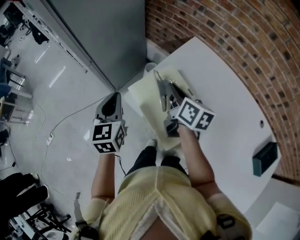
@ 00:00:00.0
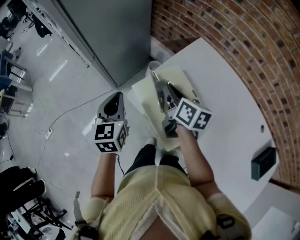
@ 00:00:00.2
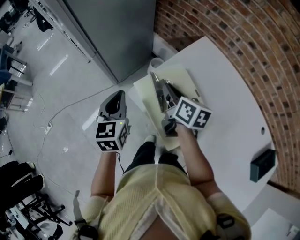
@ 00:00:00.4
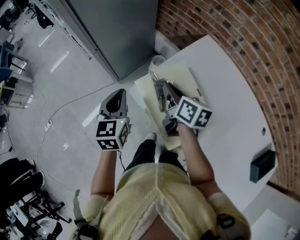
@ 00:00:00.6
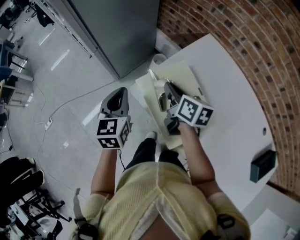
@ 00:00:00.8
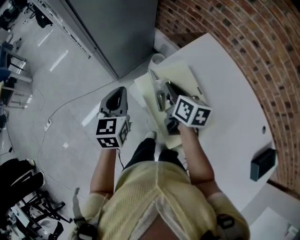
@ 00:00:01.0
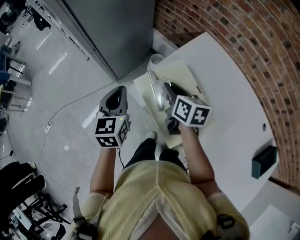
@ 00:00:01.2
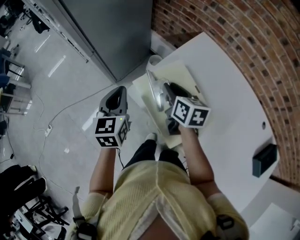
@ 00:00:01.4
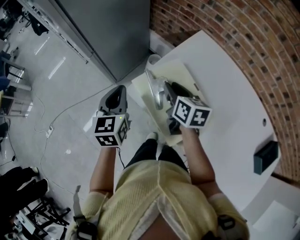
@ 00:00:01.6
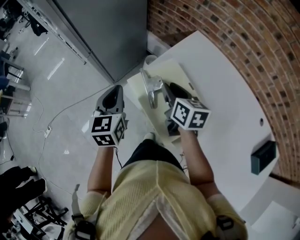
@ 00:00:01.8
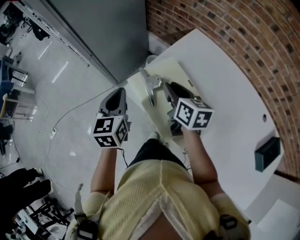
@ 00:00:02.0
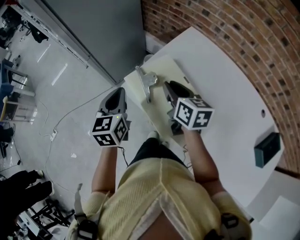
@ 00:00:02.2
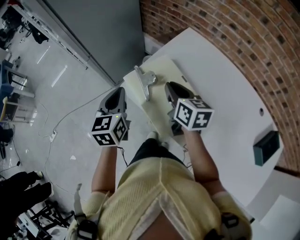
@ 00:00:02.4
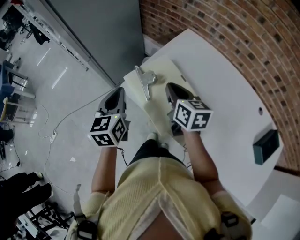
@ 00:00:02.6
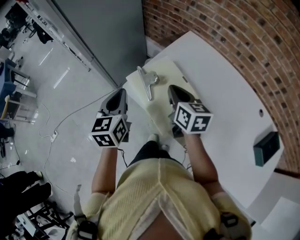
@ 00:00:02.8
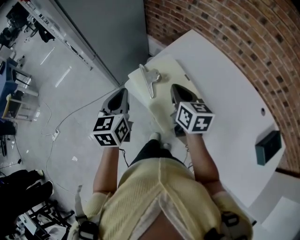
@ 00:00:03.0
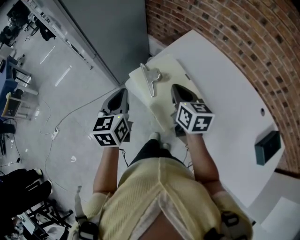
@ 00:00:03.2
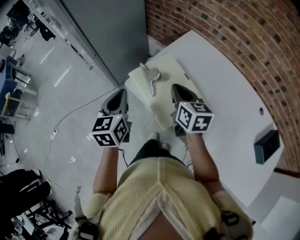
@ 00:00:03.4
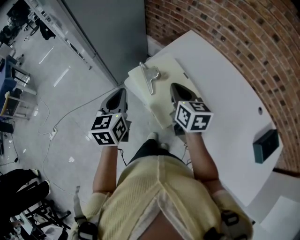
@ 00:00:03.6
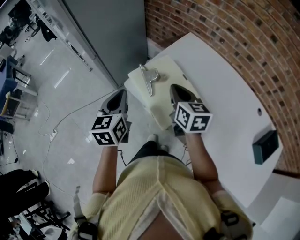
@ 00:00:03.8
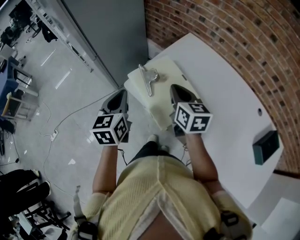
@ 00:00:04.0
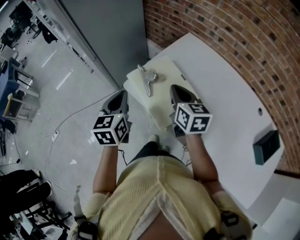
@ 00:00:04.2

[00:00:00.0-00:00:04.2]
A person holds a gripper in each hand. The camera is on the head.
00:00:00.0 to 00:00:01.4: The right gripper moves roughly 5 cm.
00:00:01.4 to 00:00:02.8: The right gripper shifts about 10 cm backward and upward, and closes up, while the left gripper shifts roughly 5 cm backward.
00:00:02.8 to 00:00:04.2: There are only small adjustments of the grippers.

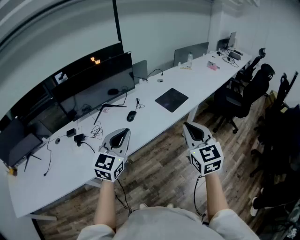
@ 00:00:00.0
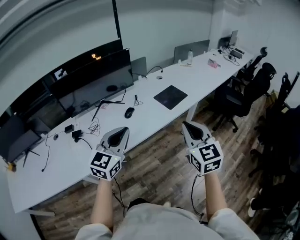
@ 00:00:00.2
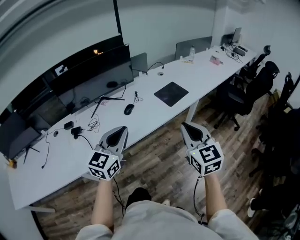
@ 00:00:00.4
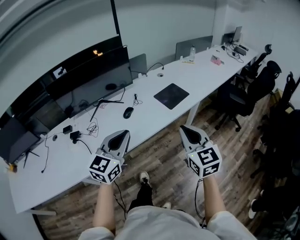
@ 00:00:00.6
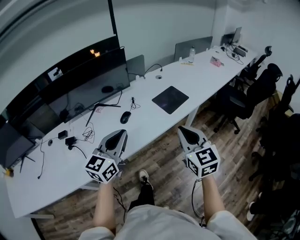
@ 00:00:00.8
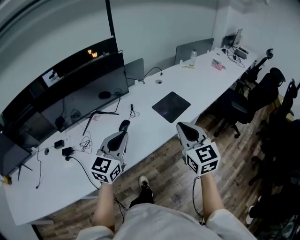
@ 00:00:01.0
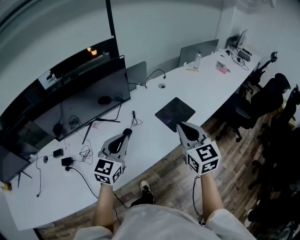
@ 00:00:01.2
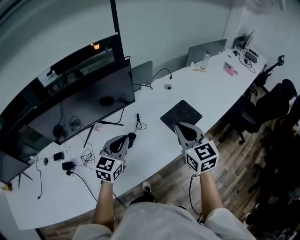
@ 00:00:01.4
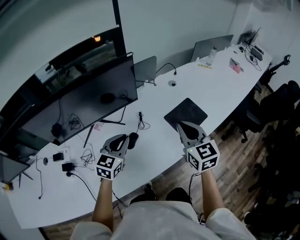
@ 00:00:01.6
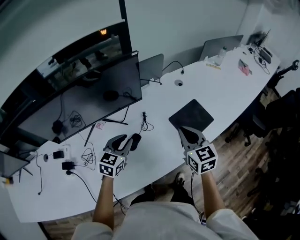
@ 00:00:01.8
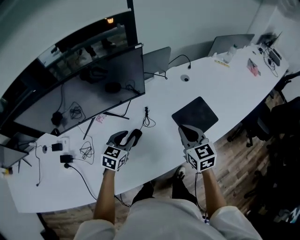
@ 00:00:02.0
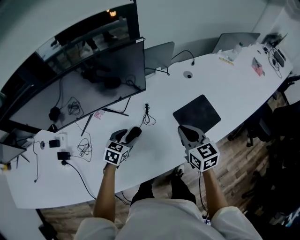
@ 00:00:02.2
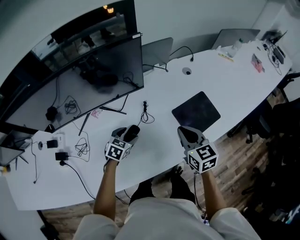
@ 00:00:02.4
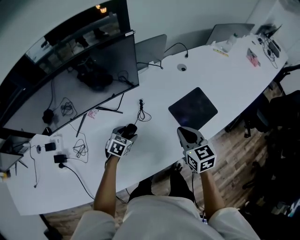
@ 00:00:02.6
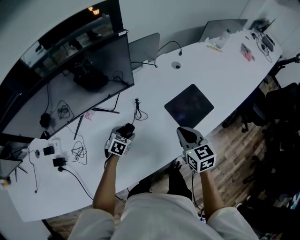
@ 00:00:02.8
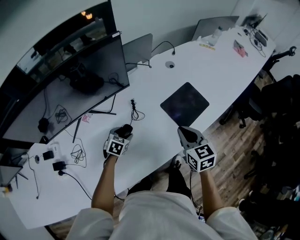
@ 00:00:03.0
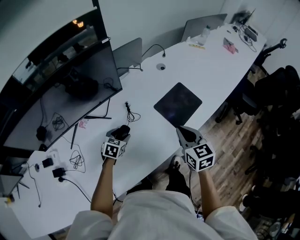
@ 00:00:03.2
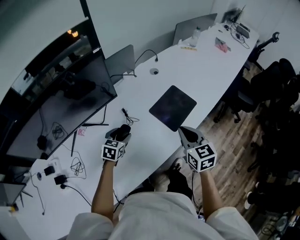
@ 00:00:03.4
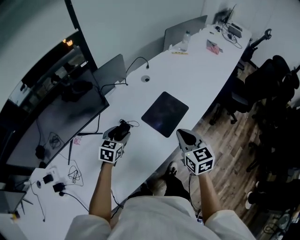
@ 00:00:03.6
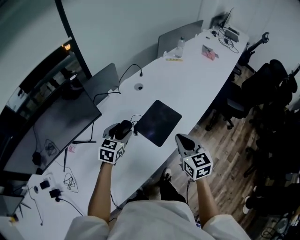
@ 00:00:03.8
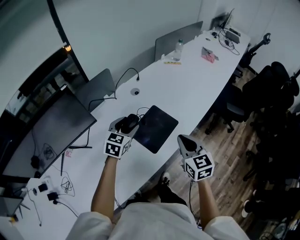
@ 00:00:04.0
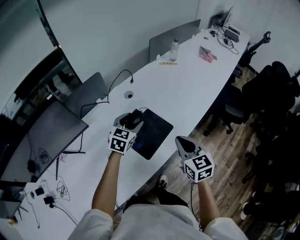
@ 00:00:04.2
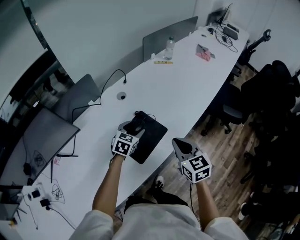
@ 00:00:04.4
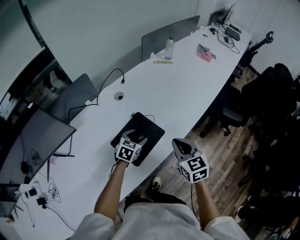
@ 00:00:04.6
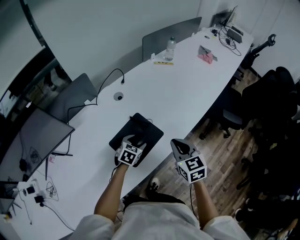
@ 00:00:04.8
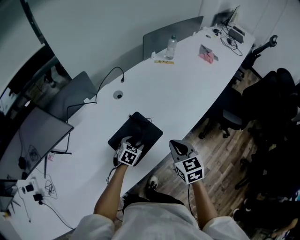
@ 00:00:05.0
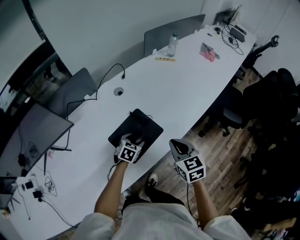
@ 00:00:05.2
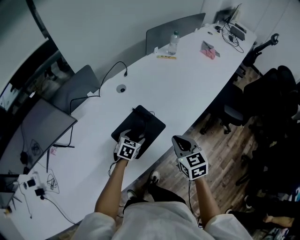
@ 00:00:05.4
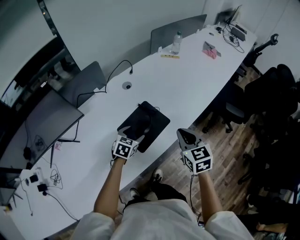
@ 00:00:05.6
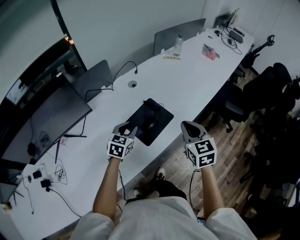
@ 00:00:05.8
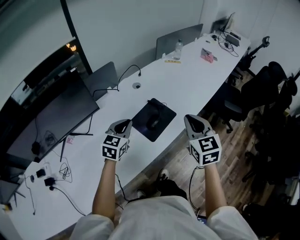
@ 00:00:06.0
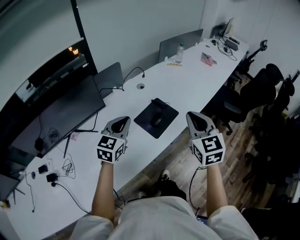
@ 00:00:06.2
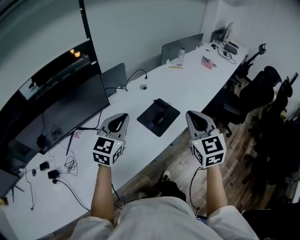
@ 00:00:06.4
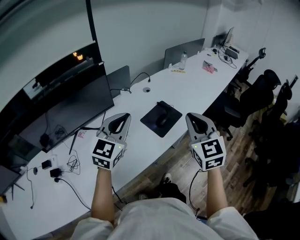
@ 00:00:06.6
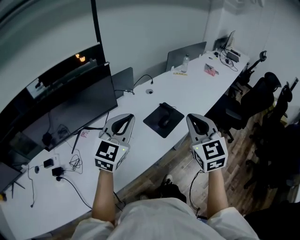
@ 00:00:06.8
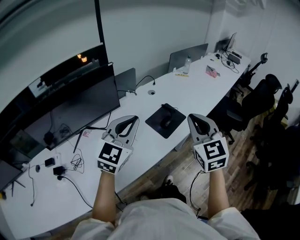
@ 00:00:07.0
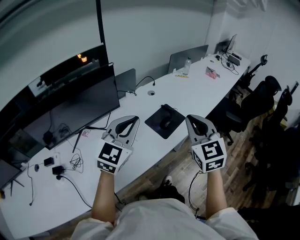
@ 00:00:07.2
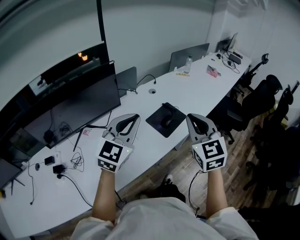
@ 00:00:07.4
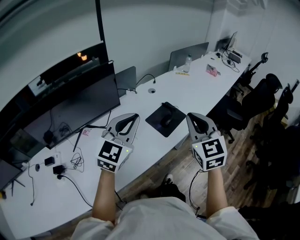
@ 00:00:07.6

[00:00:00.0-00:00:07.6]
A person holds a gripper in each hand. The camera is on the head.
00:00:00.0 to 00:00:01.6: The right gripper moves forward, roughly 40 cm. Meanwhile the left gripper shifts some 40 cm forward and downward.
00:00:01.6 to 00:00:03.0: The right gripper travels downward by about 15 cm. The left gripper travels downward by roughly 25 cm, tips its fingers downward by approximately 30 degrees, and opens up.
00:00:03.0 to 00:00:04.6: The two grippers go approximately 35 cm to the right and forward.
00:00:04.6 to 00:00:06.0: The left gripper heads upward, backward and to the left, covering roughly 25 cm, rotates approximately 20 degrees, and closes; the right gripper goes about 15 cm upward and backward.
00:00:06.0 to 00:00:07.6: The right gripper shifts roughly 20 cm backward, to the left and upward. Meanwhile the left gripper moves upward and backward, about 25 cm, and changes its angle by some 20 degrees.

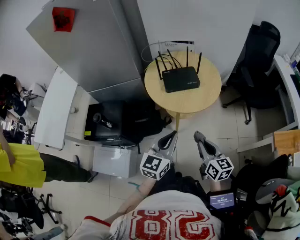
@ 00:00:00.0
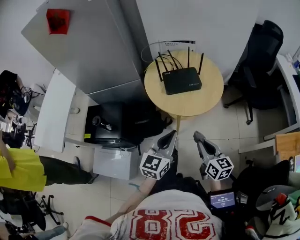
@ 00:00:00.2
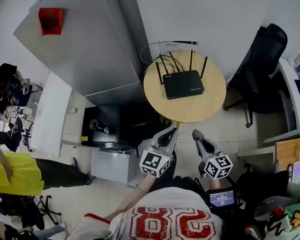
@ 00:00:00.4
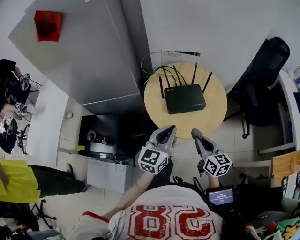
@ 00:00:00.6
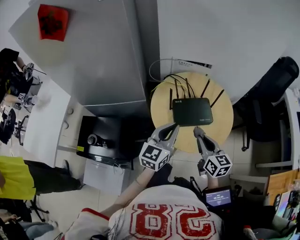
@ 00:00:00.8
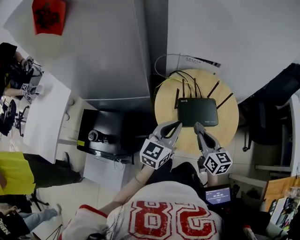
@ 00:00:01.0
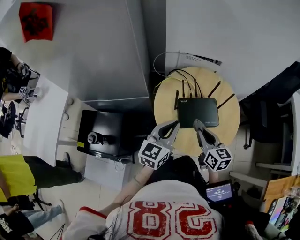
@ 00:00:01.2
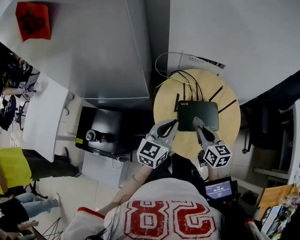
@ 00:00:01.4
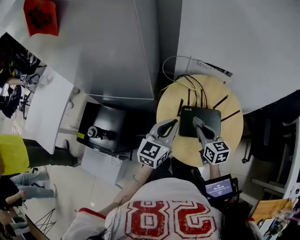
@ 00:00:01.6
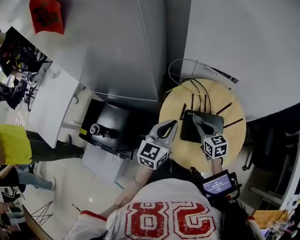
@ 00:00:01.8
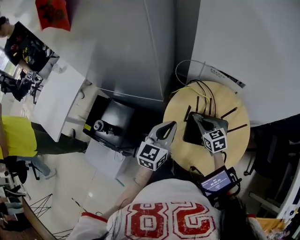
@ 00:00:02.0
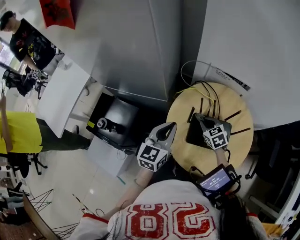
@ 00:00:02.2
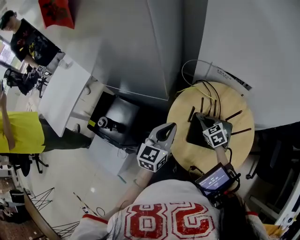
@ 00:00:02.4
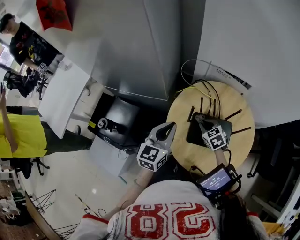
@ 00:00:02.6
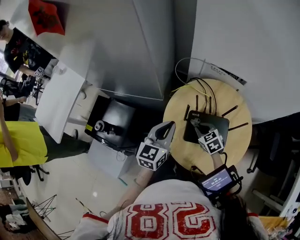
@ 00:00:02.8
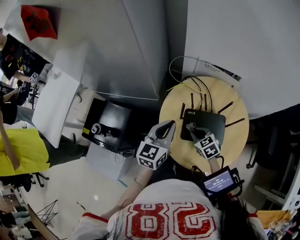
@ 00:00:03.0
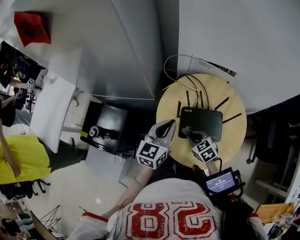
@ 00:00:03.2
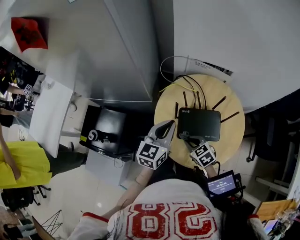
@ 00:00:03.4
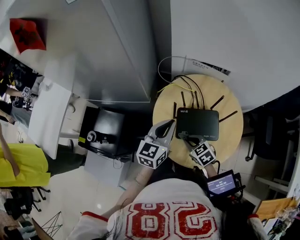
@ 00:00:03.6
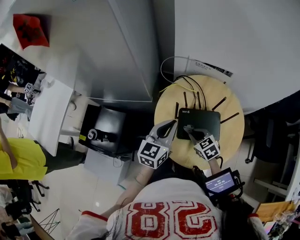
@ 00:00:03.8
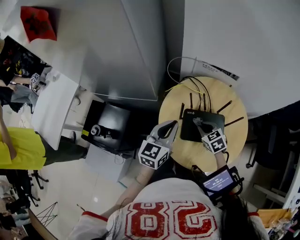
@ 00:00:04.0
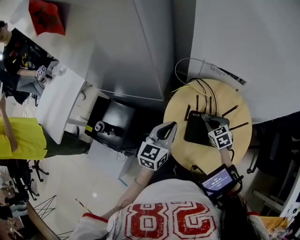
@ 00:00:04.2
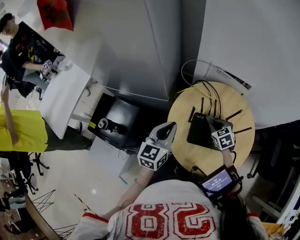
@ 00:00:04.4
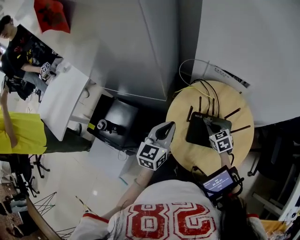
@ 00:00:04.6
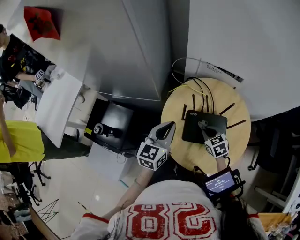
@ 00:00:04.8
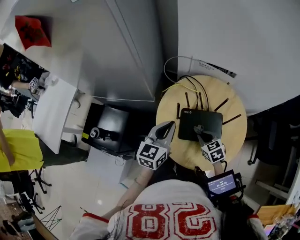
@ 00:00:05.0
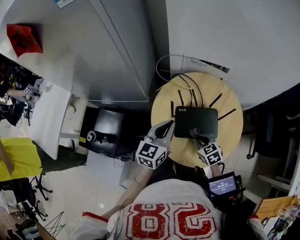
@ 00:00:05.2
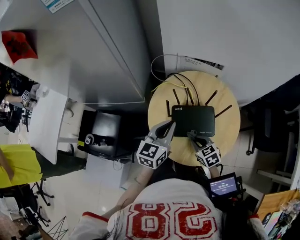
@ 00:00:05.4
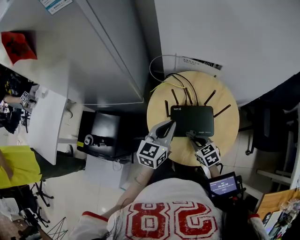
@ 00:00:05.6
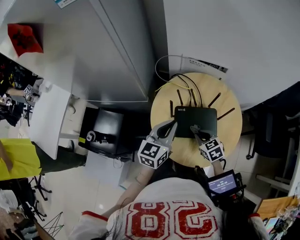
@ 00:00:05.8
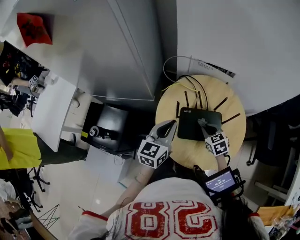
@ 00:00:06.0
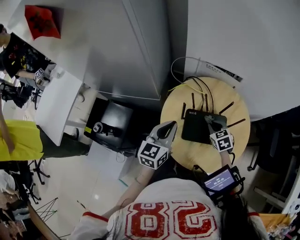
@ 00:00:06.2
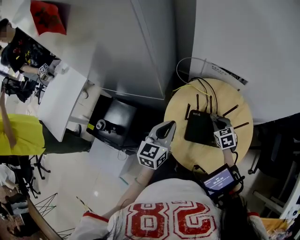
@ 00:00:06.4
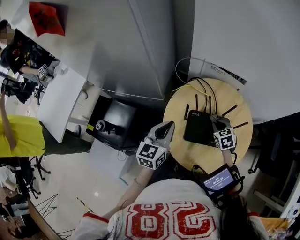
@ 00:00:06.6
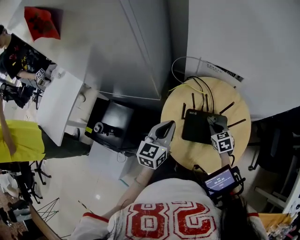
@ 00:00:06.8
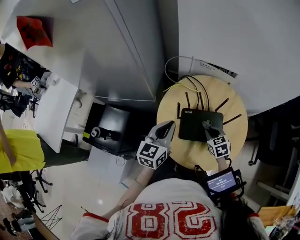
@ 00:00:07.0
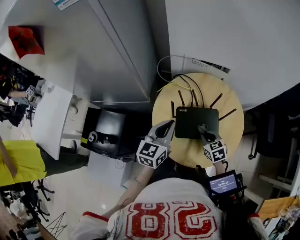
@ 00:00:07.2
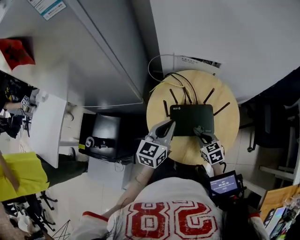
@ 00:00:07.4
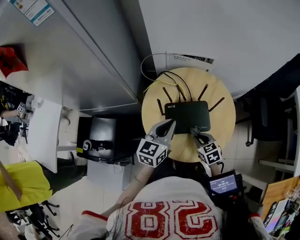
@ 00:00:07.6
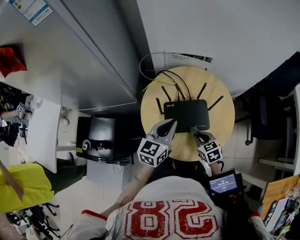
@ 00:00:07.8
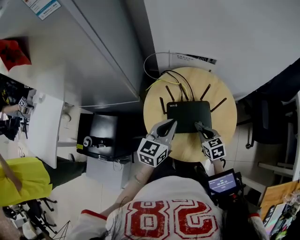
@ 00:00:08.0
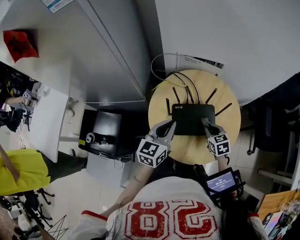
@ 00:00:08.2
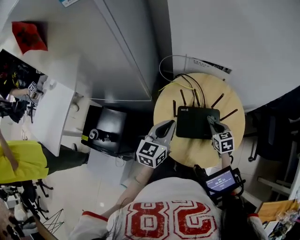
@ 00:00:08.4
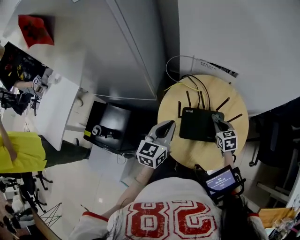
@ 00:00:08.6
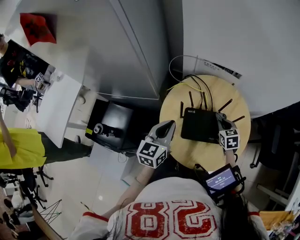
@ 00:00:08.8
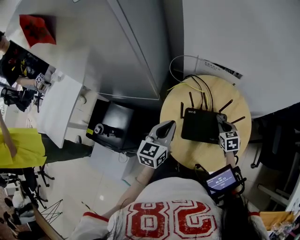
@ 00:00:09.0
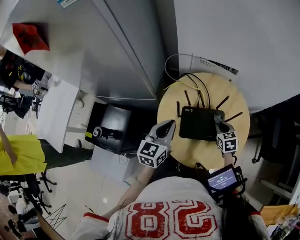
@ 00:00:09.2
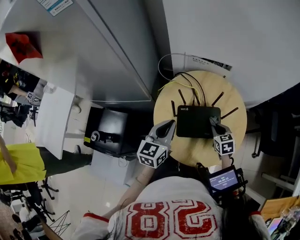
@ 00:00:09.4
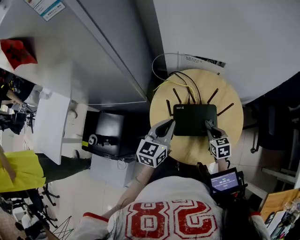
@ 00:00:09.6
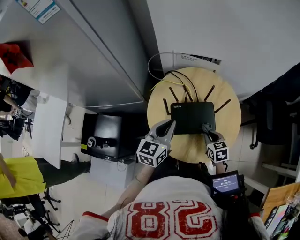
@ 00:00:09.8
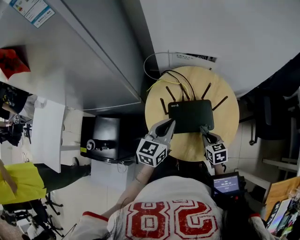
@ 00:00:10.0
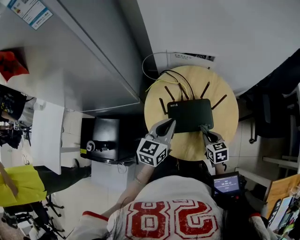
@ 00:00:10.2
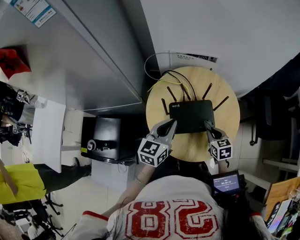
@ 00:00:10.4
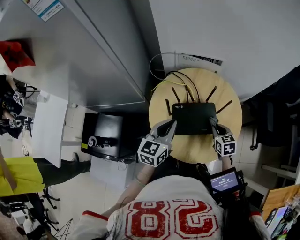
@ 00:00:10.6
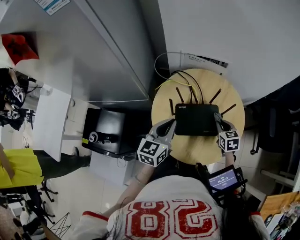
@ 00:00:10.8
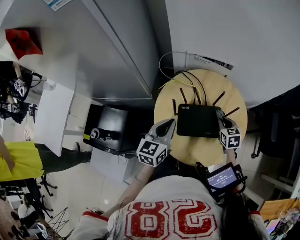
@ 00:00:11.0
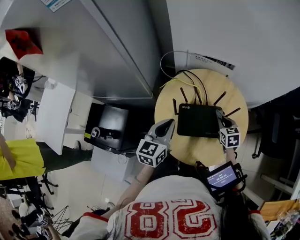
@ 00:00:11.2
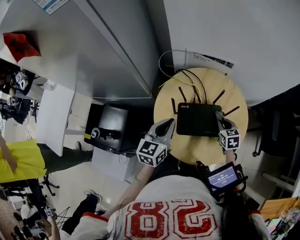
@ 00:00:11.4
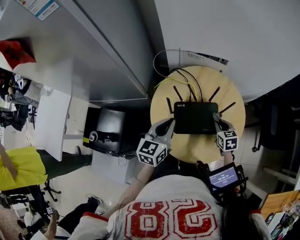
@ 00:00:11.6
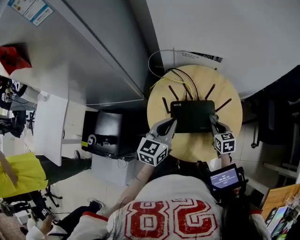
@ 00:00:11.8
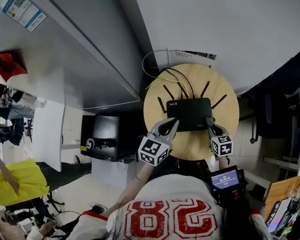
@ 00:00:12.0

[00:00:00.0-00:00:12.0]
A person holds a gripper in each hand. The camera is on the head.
00:00:00.0 to 00:00:01.6: Both grippers travel together forward, some 35 cm. The right gripper turns by approximately 20 degrees.
00:00:01.6 to 00:00:03.0: The right gripper is displaced downward by some 10 cm, and swivels approximately 30 degrees.
00:00:03.0 to 00:00:04.4: The right gripper goes some 10 cm to the right and forward.
00:00:04.4 to 00:00:06.0: The right gripper goes approximately 5 cm backward. The left gripper is displaced to the right by roughly 5 cm.
00:00:06.0 to 00:00:07.6: The right gripper moves backward, some 10 cm; the left gripper is displaced to the right by approximately 5 cm.
00:00:07.6 to 00:00:09.0: The left gripper is displaced to the left by some 10 cm. Meanwhile the right gripper is displaced forward and to the right by about 15 cm.
00:00:09.0 to 00:00:10.4: The right gripper travels backward by roughly 10 cm. The left gripper shifts approximately 5 cm to the right.
00:00:10.4 to 00:00:12.0: The right gripper travels forward and back again, roughly 10 cm each way.
